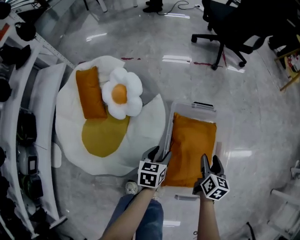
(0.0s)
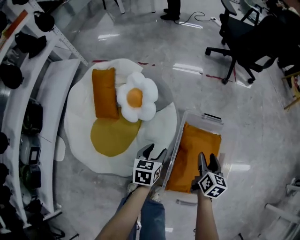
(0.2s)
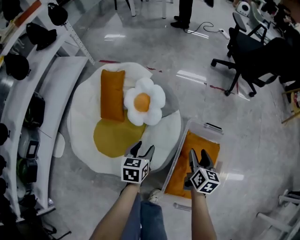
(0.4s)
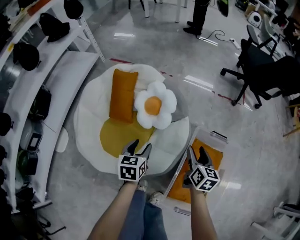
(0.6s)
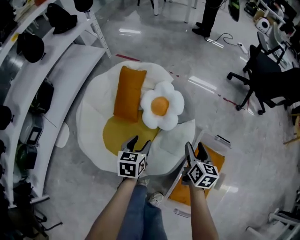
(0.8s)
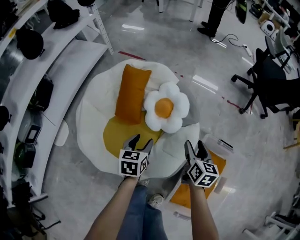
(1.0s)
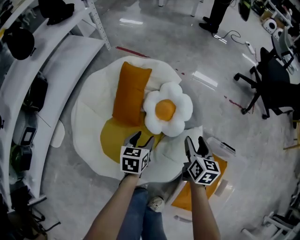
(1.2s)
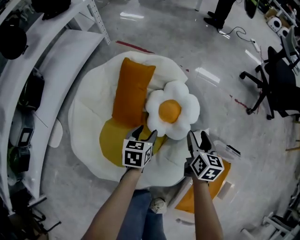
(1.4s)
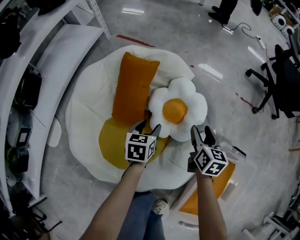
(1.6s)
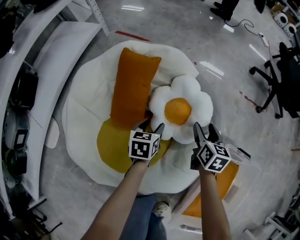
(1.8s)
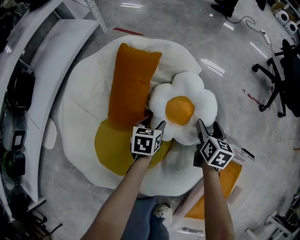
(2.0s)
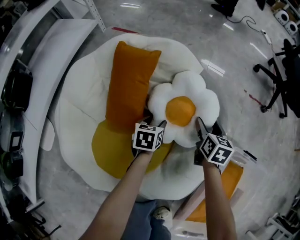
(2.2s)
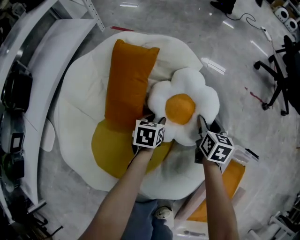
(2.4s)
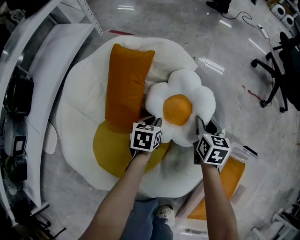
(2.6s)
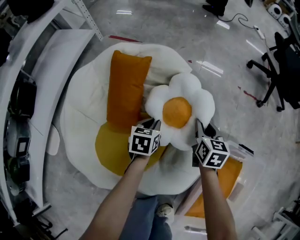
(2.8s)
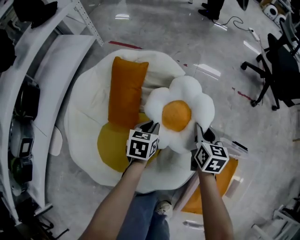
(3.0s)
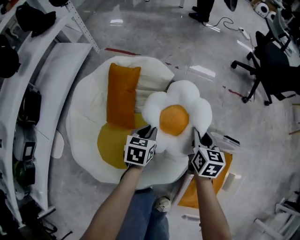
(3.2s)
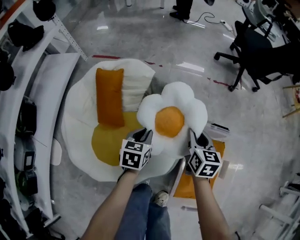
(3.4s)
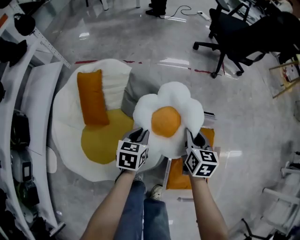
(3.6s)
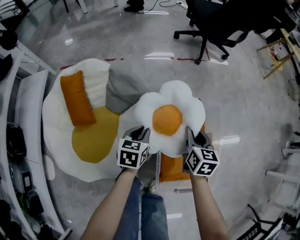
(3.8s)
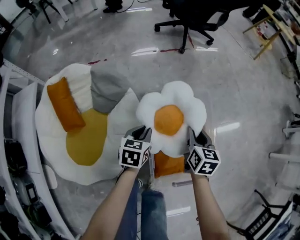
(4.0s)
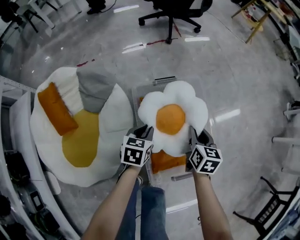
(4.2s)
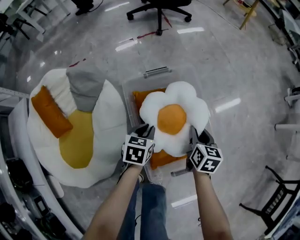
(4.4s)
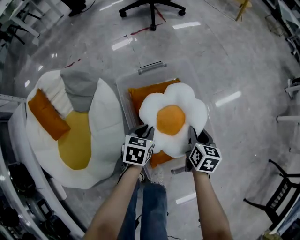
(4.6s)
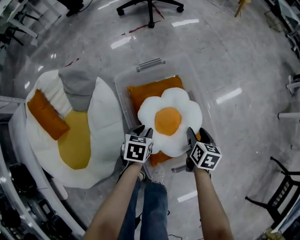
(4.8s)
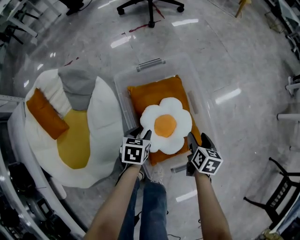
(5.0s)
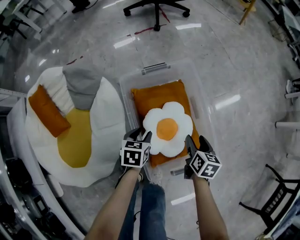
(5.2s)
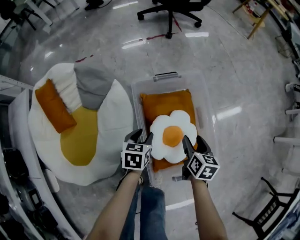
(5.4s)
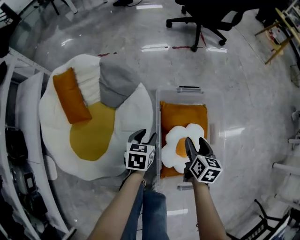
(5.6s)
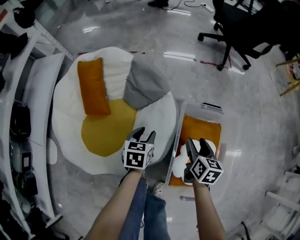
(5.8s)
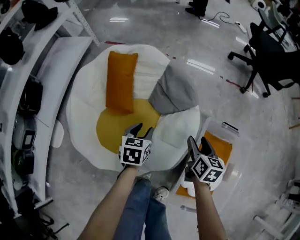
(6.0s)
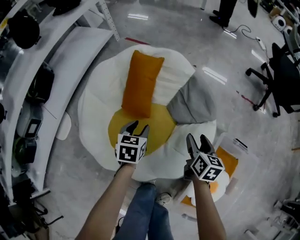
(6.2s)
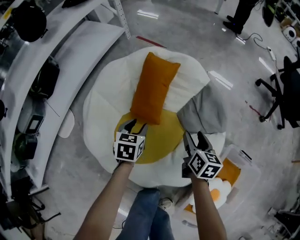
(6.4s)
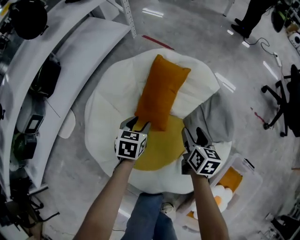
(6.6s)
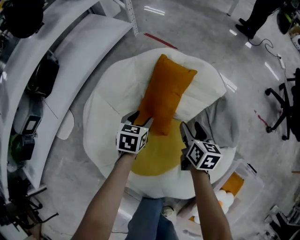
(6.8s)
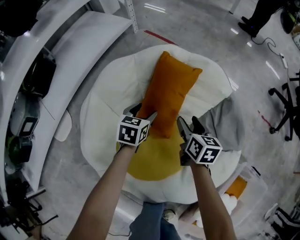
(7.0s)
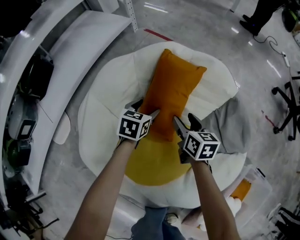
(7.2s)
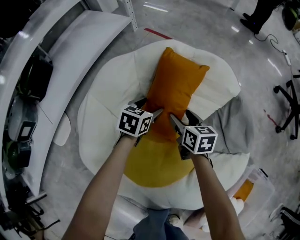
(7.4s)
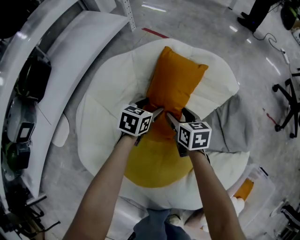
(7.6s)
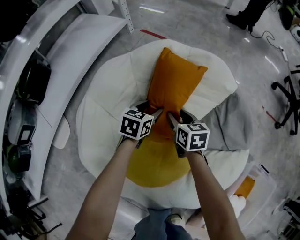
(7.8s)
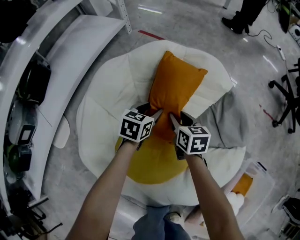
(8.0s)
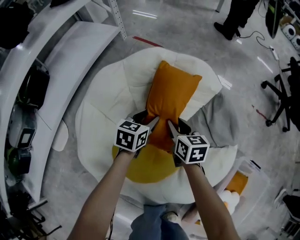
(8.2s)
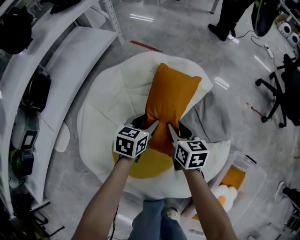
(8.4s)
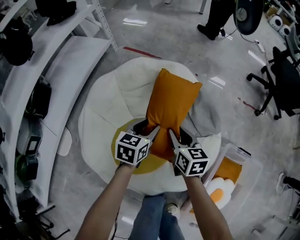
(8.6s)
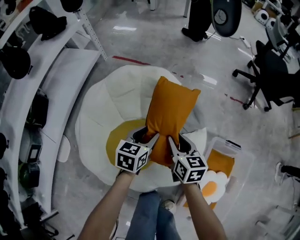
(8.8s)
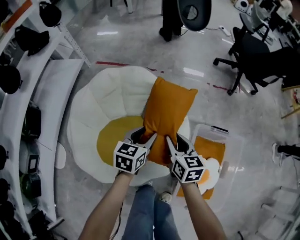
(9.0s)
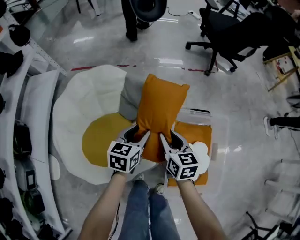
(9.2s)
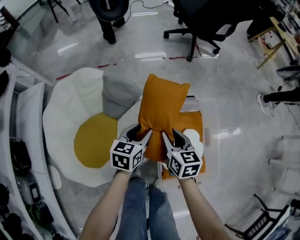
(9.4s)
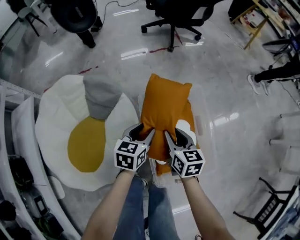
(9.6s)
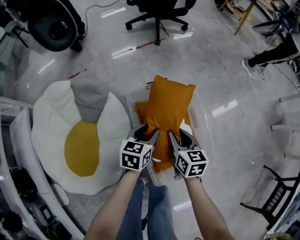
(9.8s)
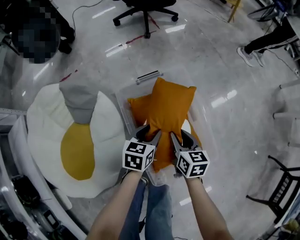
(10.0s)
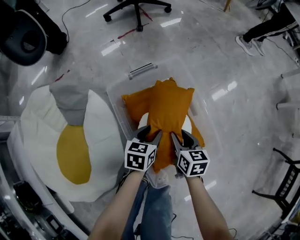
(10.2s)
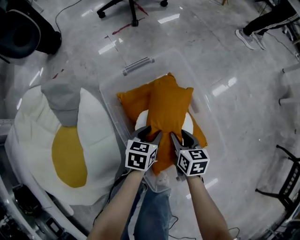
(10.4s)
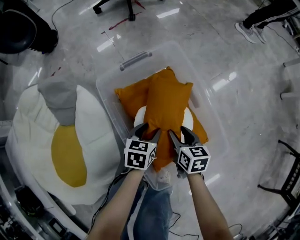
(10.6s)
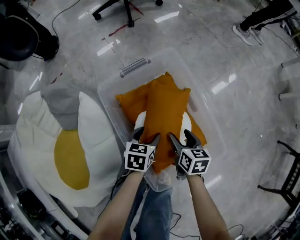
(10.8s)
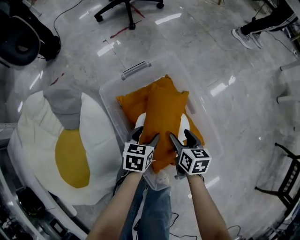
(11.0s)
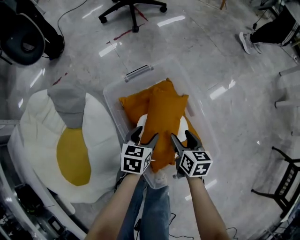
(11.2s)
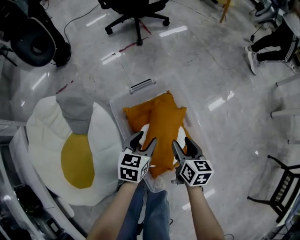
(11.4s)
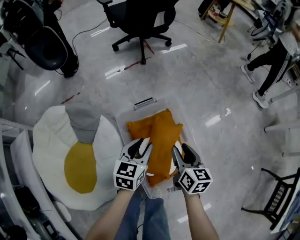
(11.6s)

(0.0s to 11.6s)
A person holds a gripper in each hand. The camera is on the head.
0.0s - 1.4s: The two grippers travel together, roughly 40 cm. The left gripper rotates some 20 degrees; the right gripper changes its angle by about 30 degrees.
1.4s - 2.8s: The grippers both shift downward and forward by approximately 15 cm. The right gripper closes up; the left gripper closes its fingers.
2.8s - 4.4s: Both grippers are carried approximately 60 cm. The left gripper turns by approximately 50 degrees; the right gripper turns by about 50 degrees.
4.4s - 5.8s: The left gripper reaches approximately 5 cm downward, then returns, and changes its angle by roughly 30 degrees, while the right gripper moves approximately 5 cm downward and comes back, changes its angle by some 30 degrees, and opens up.
5.8s - 7.2s: The pair of grippers is taken about 50 cm. The right gripper rotates approximately 40 degrees. Meanwhile the left gripper opens its fingers.
7.2s - 8.8s: The right gripper heads upward, backward and to the right, covering about 30 cm, and closes up; the left gripper shifts roughly 35 cm upward, to the right and backward.
8.8s - 10.2s: The two grippers travel together, roughly 60 cm. The left gripper turns by some 50 degrees. Meanwhile the right gripper turns by some 50 degrees.
10.2s - 11.6s: Both grippers move upward, about 20 cm.

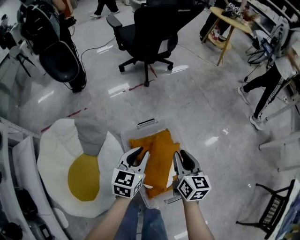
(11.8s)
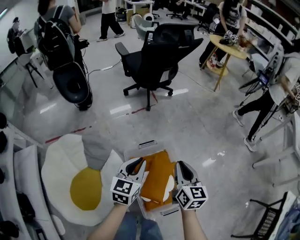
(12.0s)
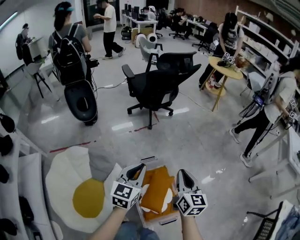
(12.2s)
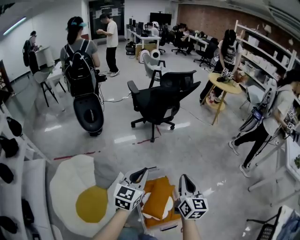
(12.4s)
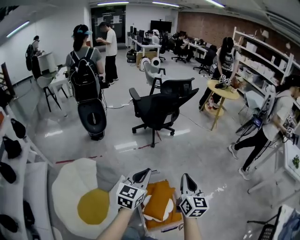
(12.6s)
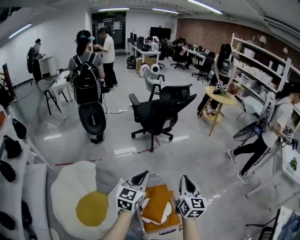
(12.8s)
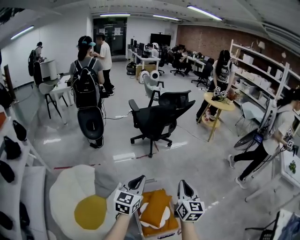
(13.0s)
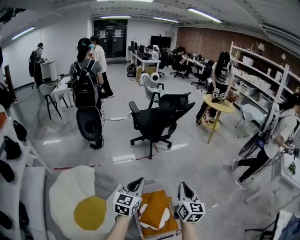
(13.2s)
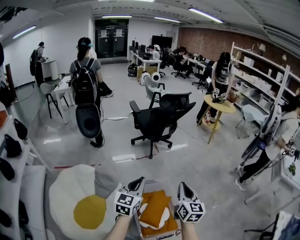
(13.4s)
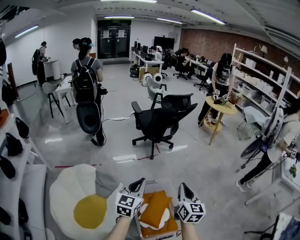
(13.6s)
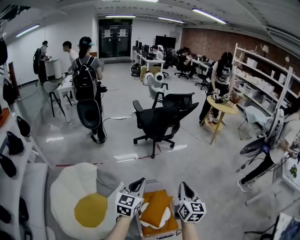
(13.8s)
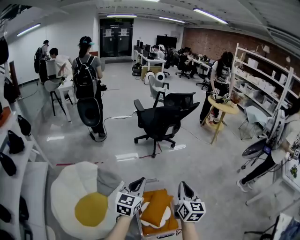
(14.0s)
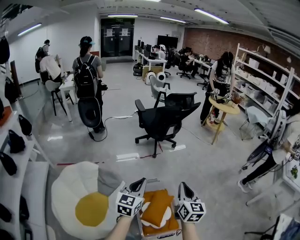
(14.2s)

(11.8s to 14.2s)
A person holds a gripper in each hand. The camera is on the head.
11.8s - 13.0s: Both grippers travel together upward, roughly 35 cm. The right gripper turns by some 20 degrees. The left gripper changes its angle by roughly 20 degrees.
13.0s - 14.2s: The grippers make only small movements.

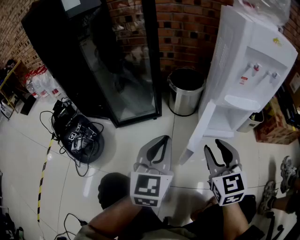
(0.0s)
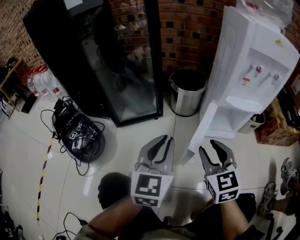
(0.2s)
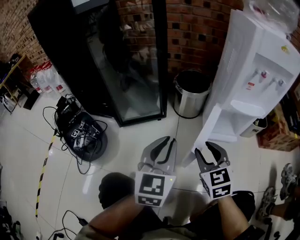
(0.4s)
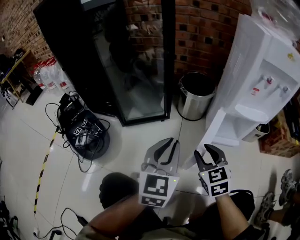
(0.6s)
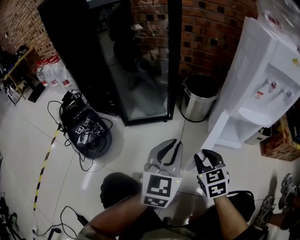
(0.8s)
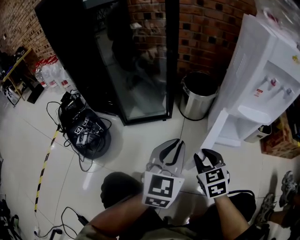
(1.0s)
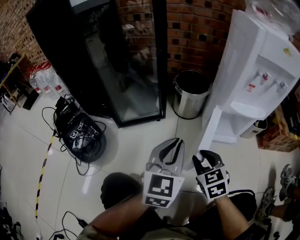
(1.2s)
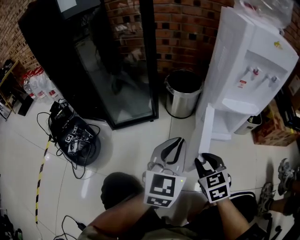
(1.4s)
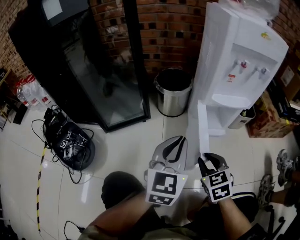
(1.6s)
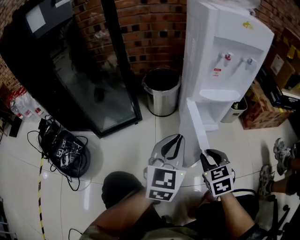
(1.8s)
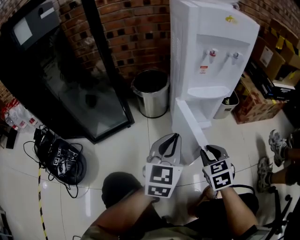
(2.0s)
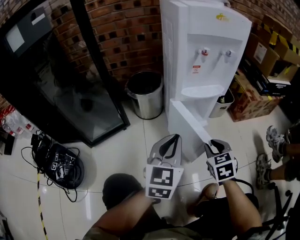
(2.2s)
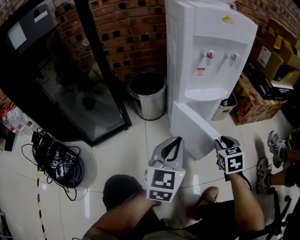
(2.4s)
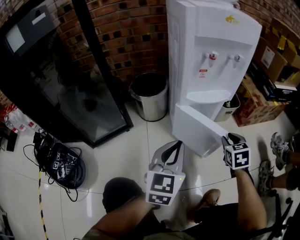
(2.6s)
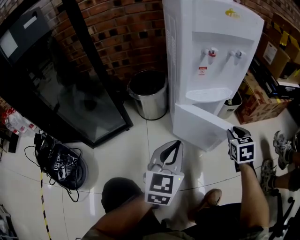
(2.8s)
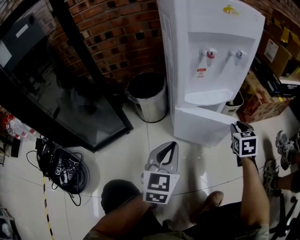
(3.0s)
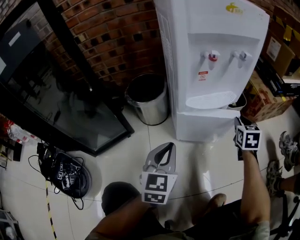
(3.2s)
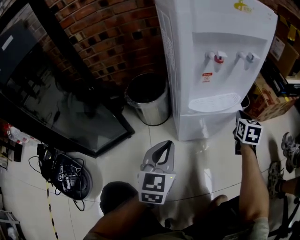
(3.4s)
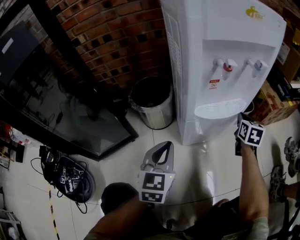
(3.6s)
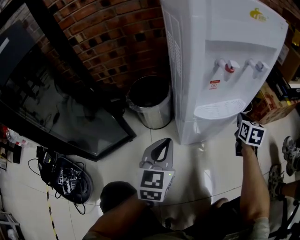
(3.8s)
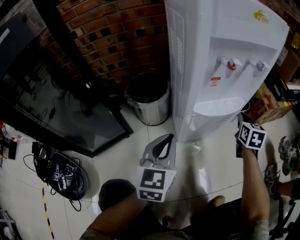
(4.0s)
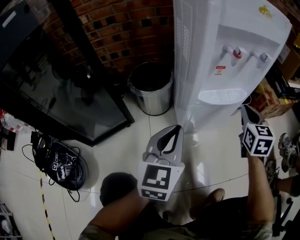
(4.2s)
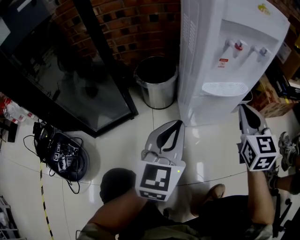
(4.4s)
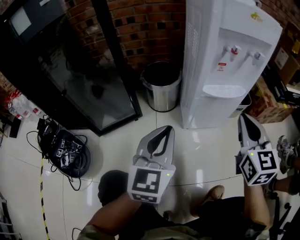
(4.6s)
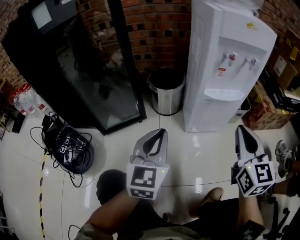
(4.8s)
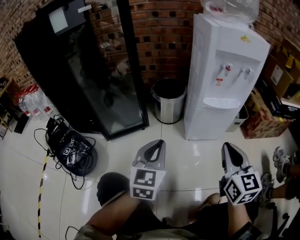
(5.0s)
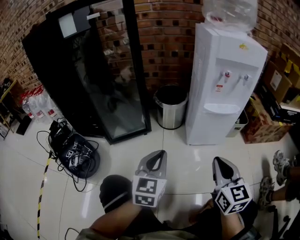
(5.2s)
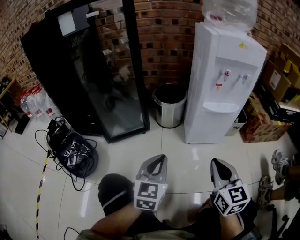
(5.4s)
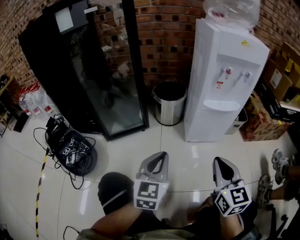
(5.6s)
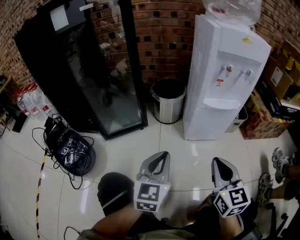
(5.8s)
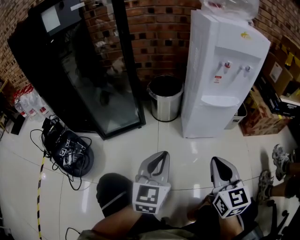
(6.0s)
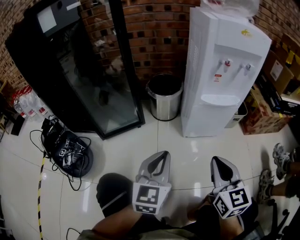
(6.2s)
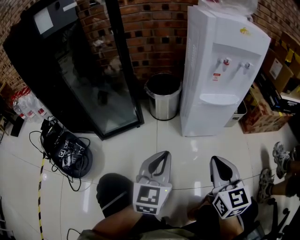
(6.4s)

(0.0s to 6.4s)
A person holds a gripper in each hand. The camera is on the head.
0.0s - 1.6s: The left gripper moves to the right, about 10 cm. Meanwhile the right gripper heads downward, covering approximately 10 cm, and rotates about 20 degrees.
1.6s - 3.2s: The right gripper is displaced forward and to the right by roughly 35 cm, and rotates some 40 degrees. The left gripper travels forward and downward by some 10 cm.
3.2s - 4.8s: The left gripper travels backward, upward and to the left by some 15 cm, while the right gripper travels backward, upward and to the left by some 30 cm, and swivels some 30 degrees.
4.8s - 6.4s: The right gripper moves downward, backward and to the left, roughly 10 cm; the left gripper changes place by roughly 5 cm.

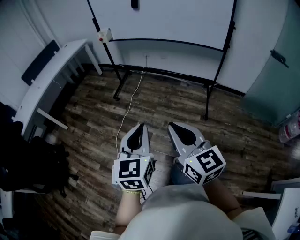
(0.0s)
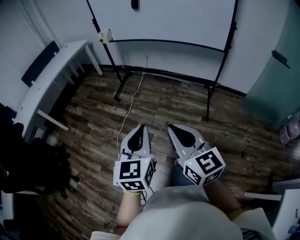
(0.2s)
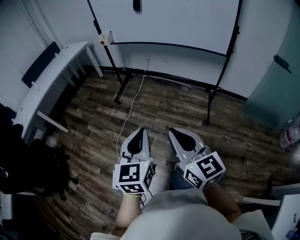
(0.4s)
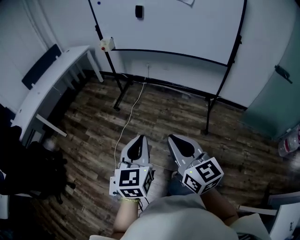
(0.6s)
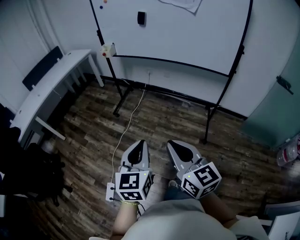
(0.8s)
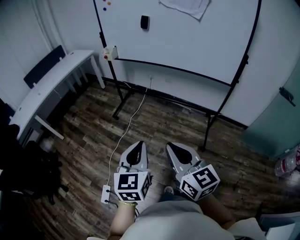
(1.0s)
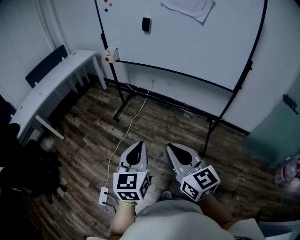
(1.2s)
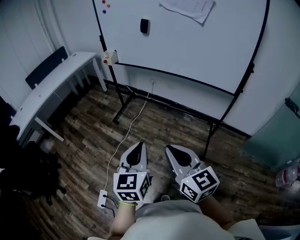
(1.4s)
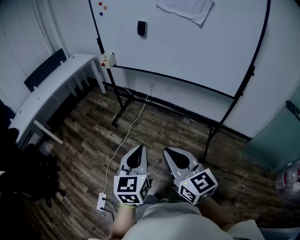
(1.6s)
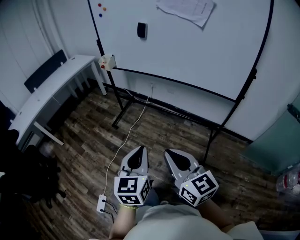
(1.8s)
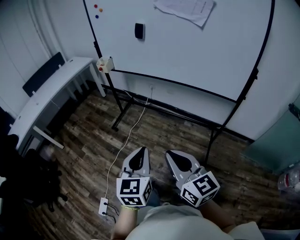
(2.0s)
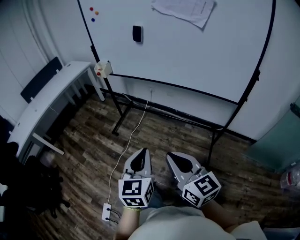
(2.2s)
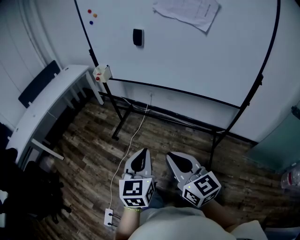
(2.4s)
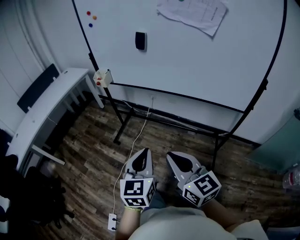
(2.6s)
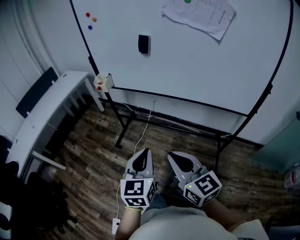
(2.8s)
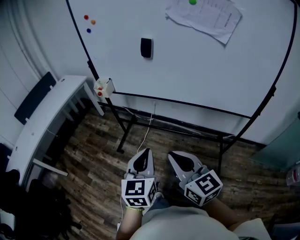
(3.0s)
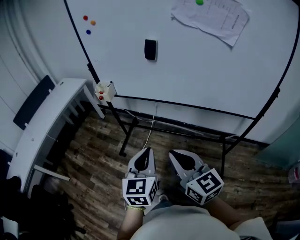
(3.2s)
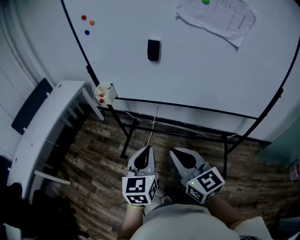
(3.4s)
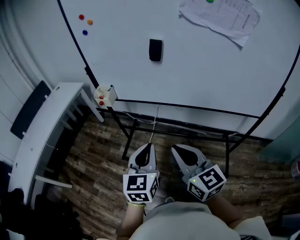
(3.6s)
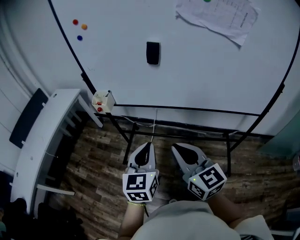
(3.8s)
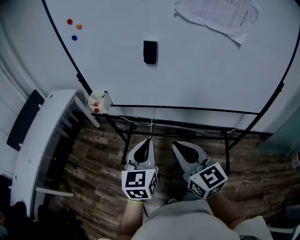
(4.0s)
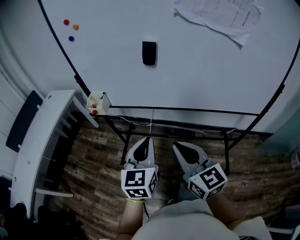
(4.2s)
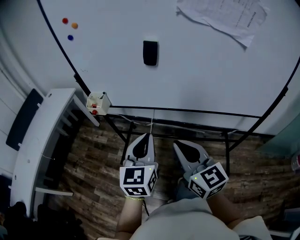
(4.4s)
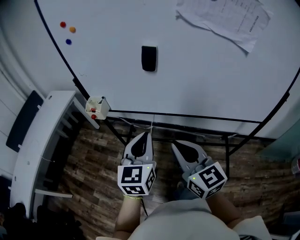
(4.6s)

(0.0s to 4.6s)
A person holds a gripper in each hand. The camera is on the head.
0.0s - 1.6s: The two grippers go about 25 cm forward and to the right.
1.6s - 3.0s: Both grippers move forward, some 25 cm.
3.0s - 4.6s: The two grippers go about 20 cm forward.
